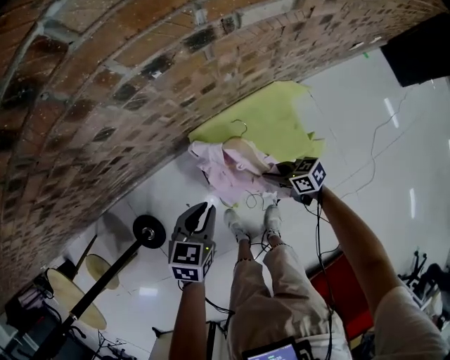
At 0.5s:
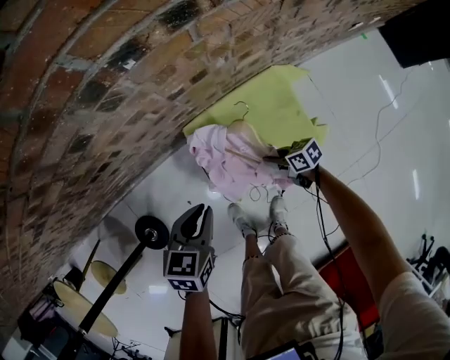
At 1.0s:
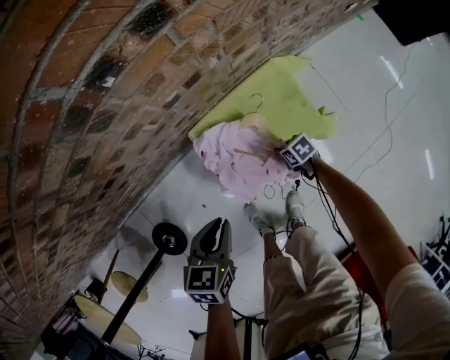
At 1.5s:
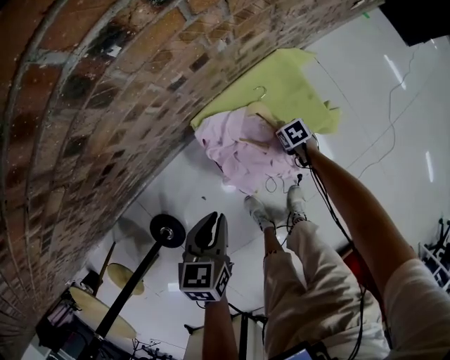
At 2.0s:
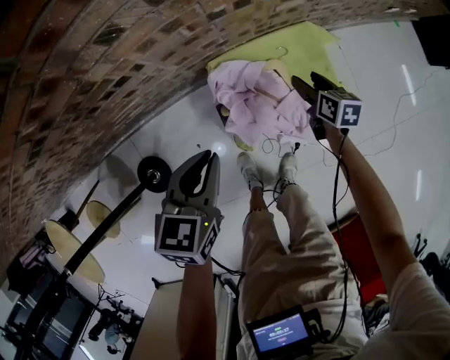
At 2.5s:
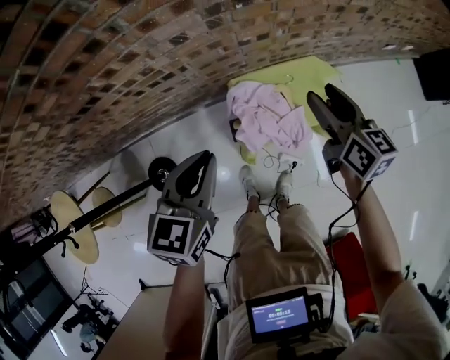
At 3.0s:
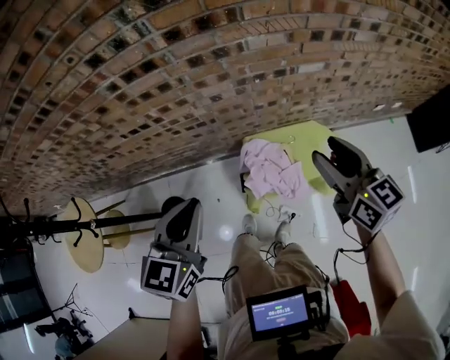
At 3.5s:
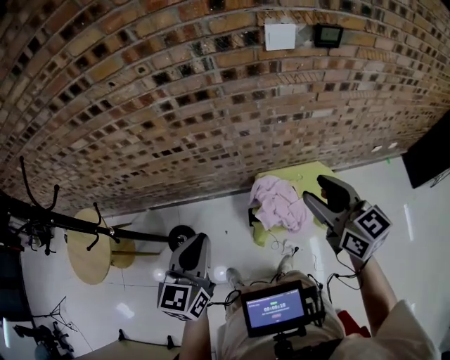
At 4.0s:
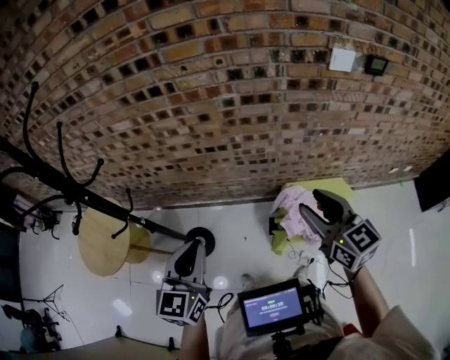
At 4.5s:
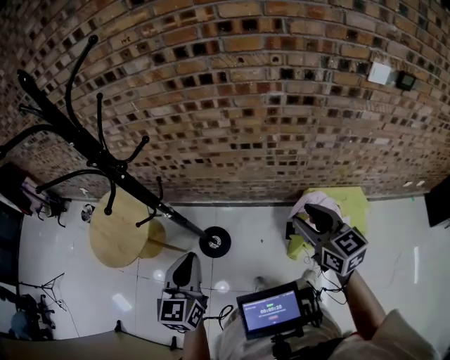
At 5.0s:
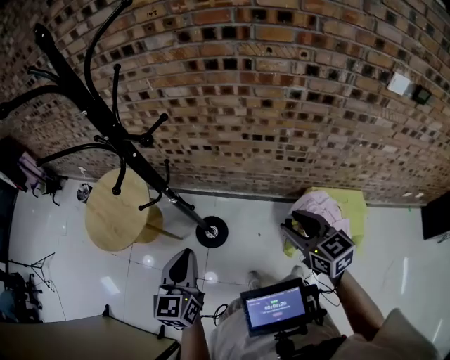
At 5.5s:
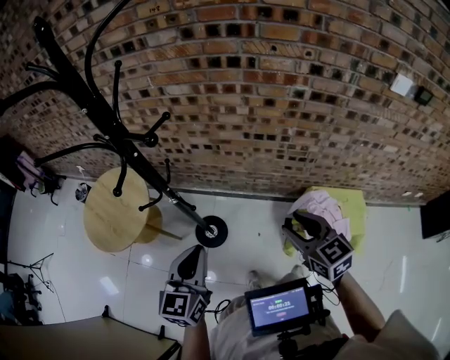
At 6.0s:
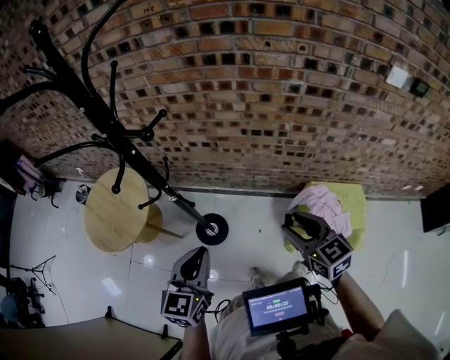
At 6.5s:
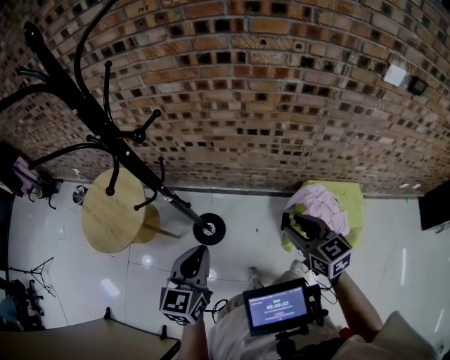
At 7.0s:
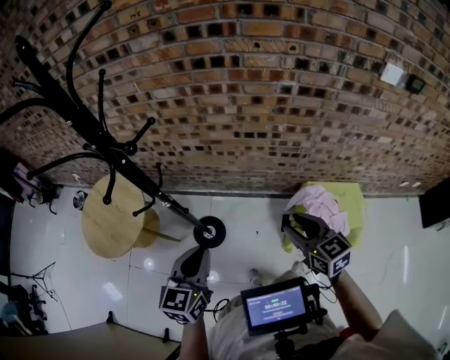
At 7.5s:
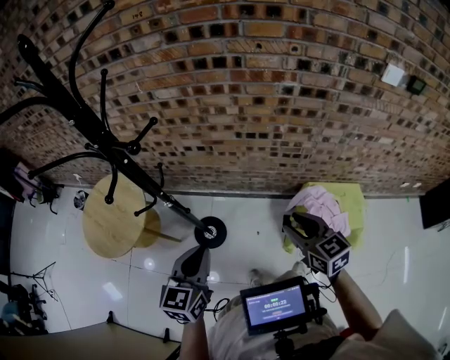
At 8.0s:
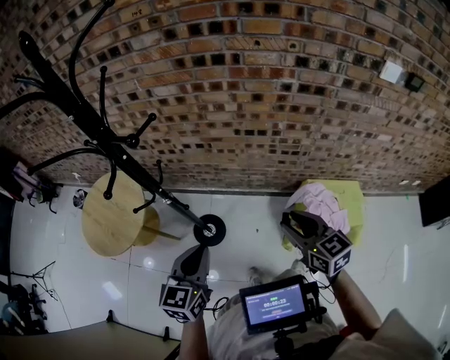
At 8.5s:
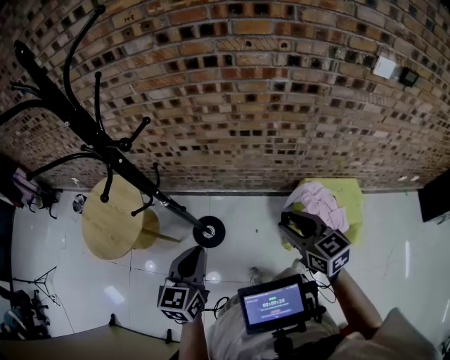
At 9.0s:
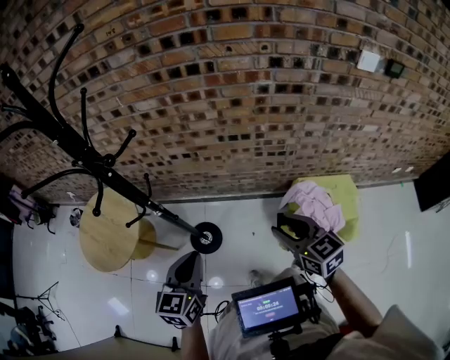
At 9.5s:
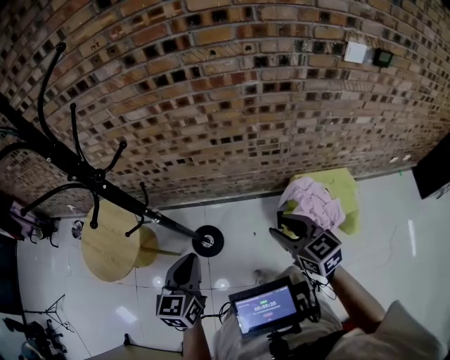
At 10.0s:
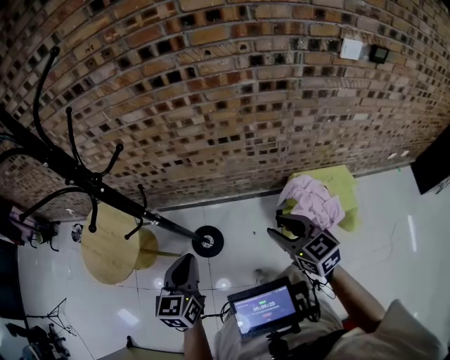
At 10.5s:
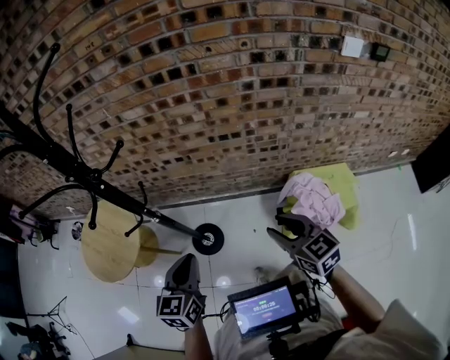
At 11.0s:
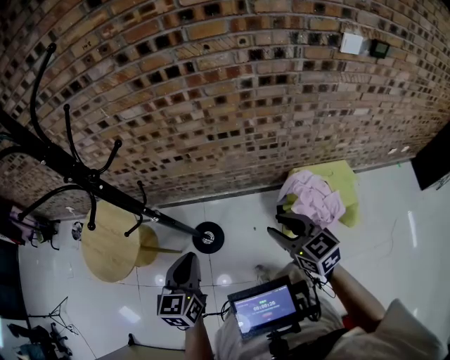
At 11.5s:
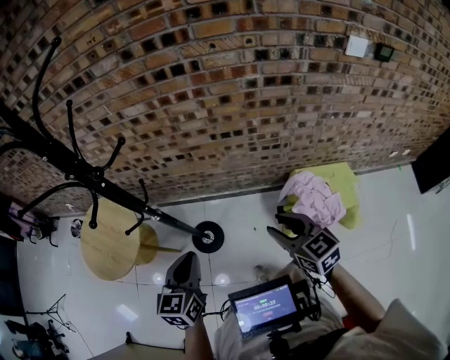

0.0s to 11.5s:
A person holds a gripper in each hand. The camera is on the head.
0.0s to 2.0s: The right gripper is displaced forward by some 5 cm, goes downward and returns, roughly 25 cm each way, changes its angle by approximately 40 degrees, and opens. Meanwhile the left gripper shifts about 5 cm to the left, and moves about 10 cm downward and comes back.
2.0s to 4.0s: Both grippers are carried roughly 60 cm. Both grippers travel together upward, roughly 70 cm. The right gripper rotates roughly 50 degrees; the left gripper swivels some 40 degrees.
4.0s to 6.0s: Both grippers travel together to the left, some 30 cm.
6.0s to 11.5s: The grippers move only a little.

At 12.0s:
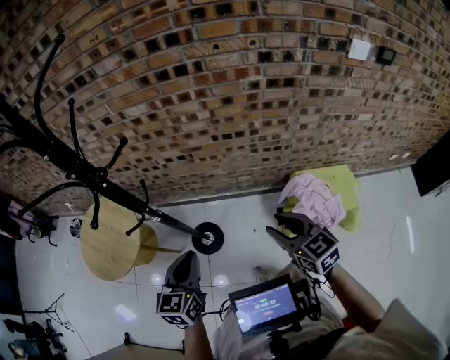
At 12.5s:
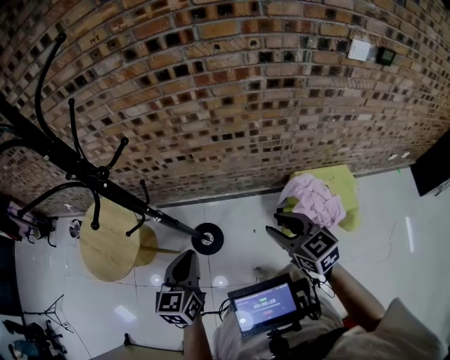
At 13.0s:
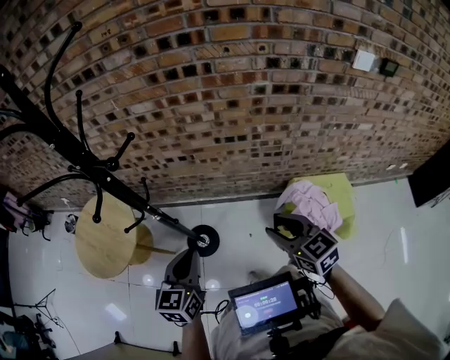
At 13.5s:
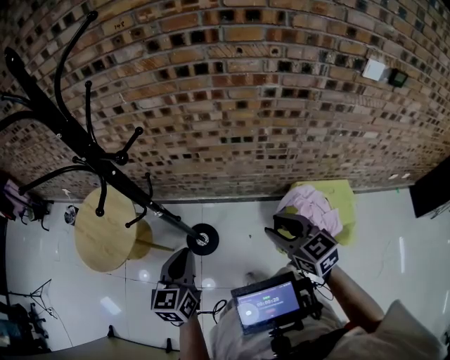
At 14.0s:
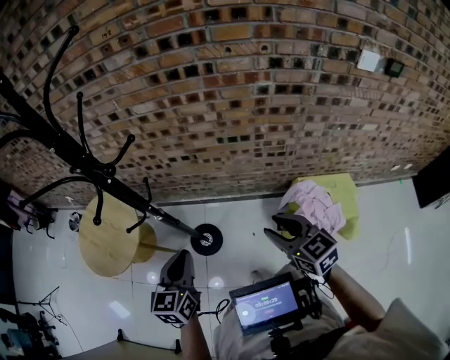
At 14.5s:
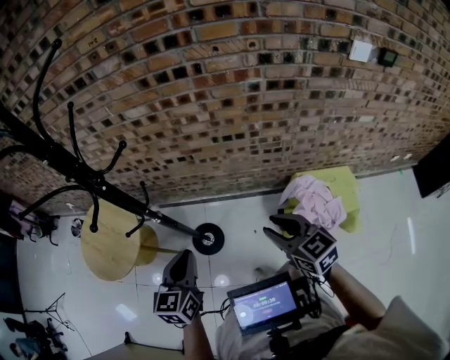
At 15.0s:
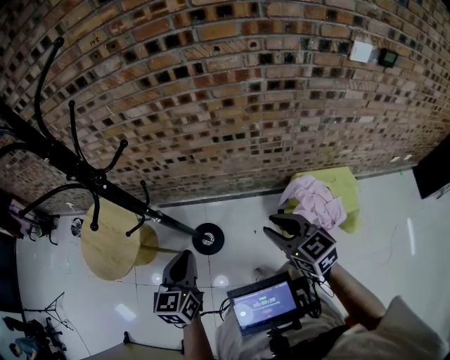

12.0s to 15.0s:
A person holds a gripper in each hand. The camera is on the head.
12.0s to 15.0s: The grippers make only small movements.

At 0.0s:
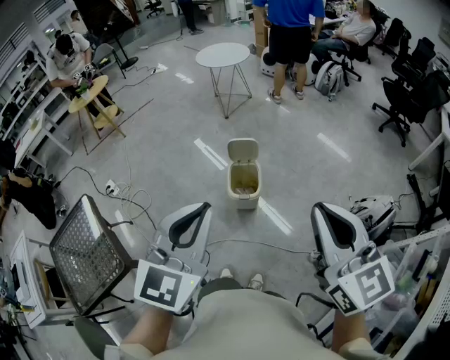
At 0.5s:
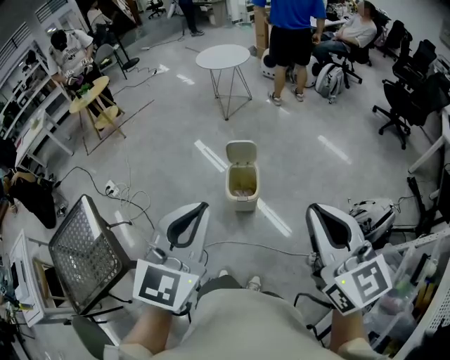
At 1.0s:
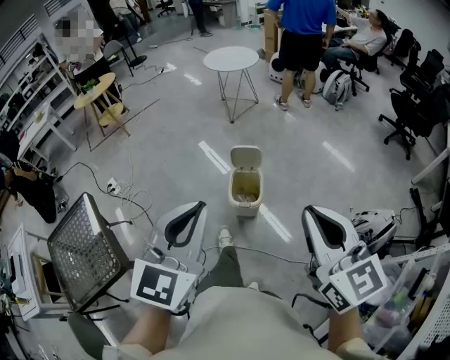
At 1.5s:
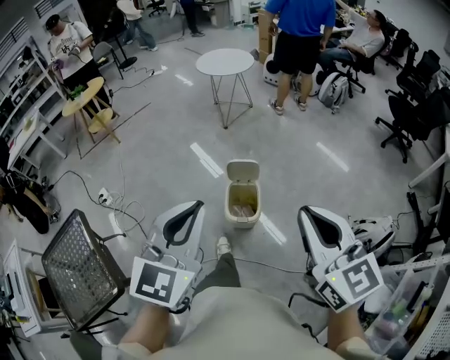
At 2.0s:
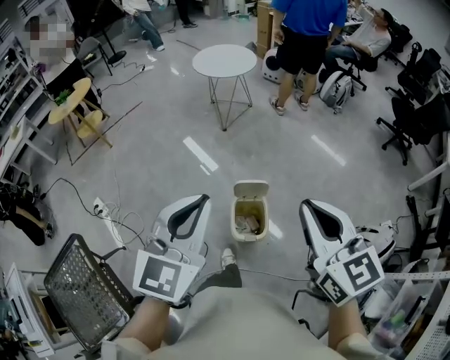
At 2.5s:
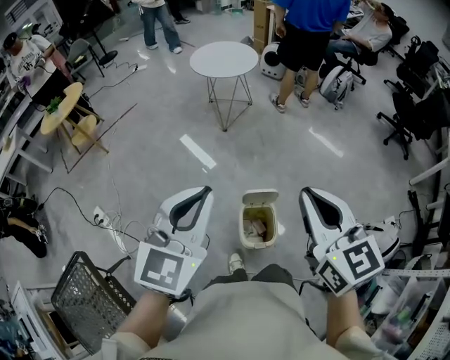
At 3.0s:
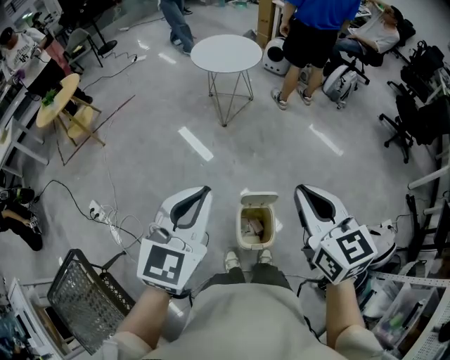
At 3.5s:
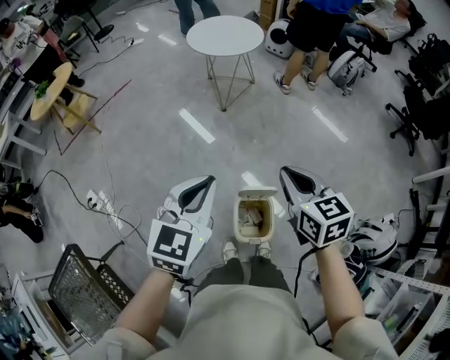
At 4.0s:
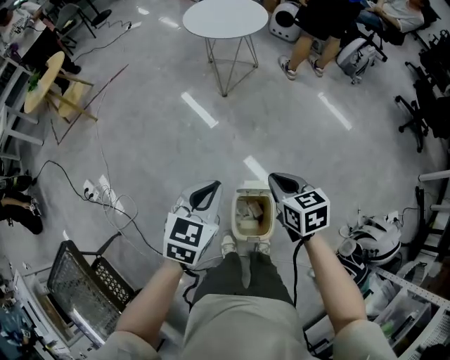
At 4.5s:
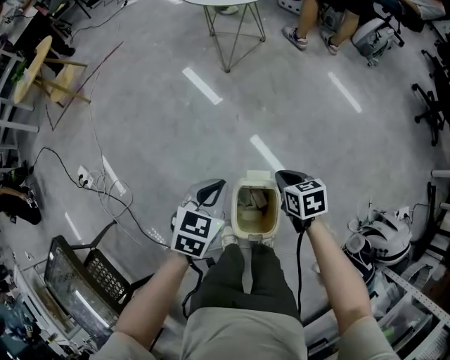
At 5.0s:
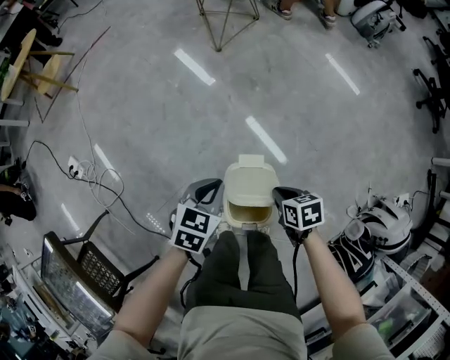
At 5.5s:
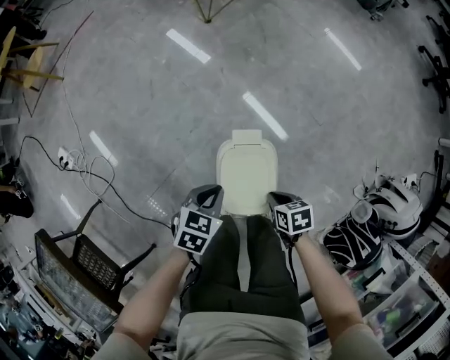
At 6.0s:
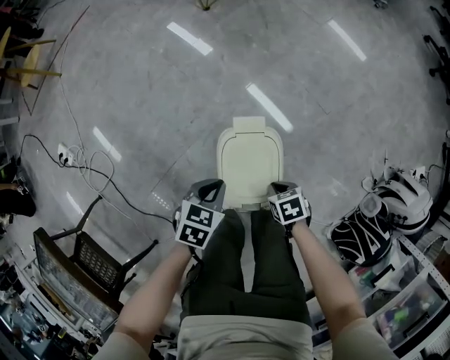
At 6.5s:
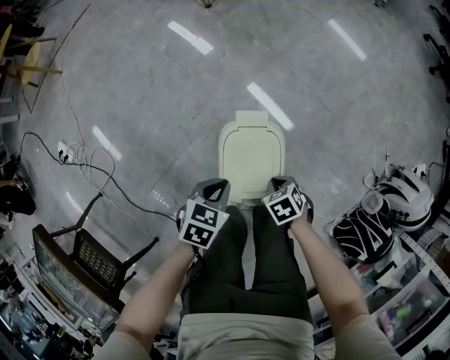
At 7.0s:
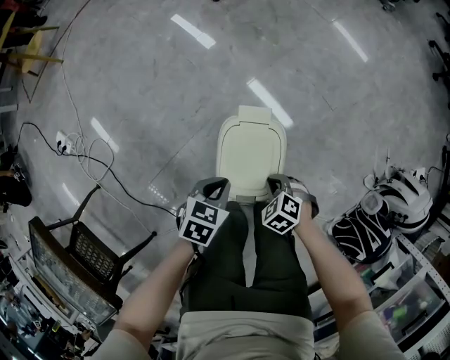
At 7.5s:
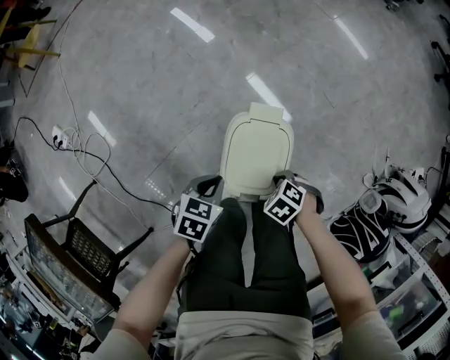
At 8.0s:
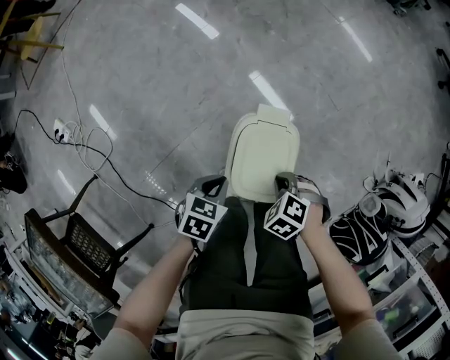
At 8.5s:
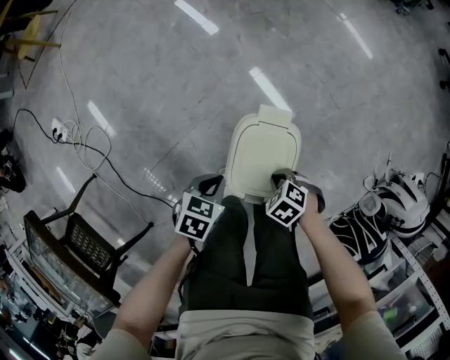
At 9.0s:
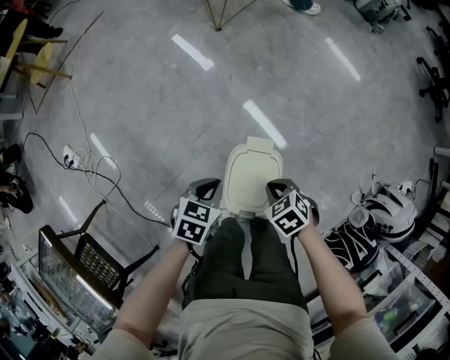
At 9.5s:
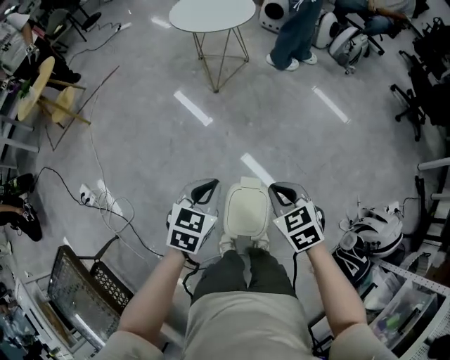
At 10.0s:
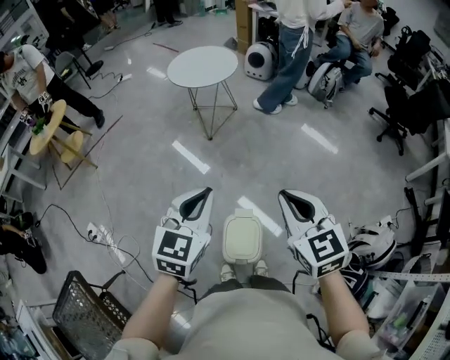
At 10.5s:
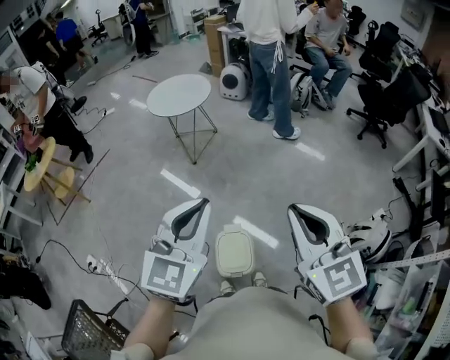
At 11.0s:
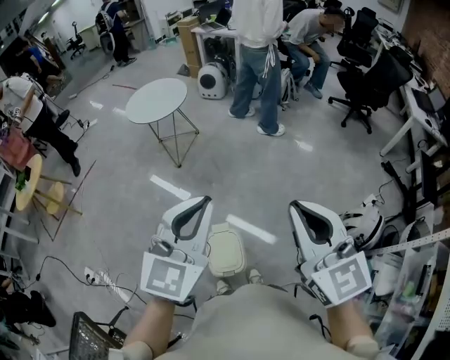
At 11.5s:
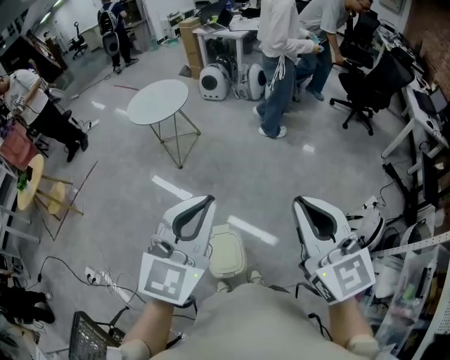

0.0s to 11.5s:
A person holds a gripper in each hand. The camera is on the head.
0.0s to 2.0s: The two grippers go about 35 cm forward.
2.0s to 4.0s: Both grippers move downward and forward, roughly 40 cm. The left gripper changes its angle by roughly 20 degrees. The right gripper changes its angle by some 30 degrees.
4.0s to 6.0s: The left gripper is displaced downward by about 40 cm, and rotates some 30 degrees. Meanwhile the right gripper moves downward and backward, roughly 50 cm, and rotates some 40 degrees.
6.0s to 7.5s: The right gripper twists about 40 degrees counterclockwise, seen from behind, while the left gripper moves about 5 cm.
7.5s to 9.5s: The left gripper is displaced upward by approximately 35 cm, and changes its angle by roughly 30 degrees; the right gripper goes up and down, roughly 40 cm each way, reversing 2 times, and points its fingers roughly 30 degrees further upward.
9.5s to 11.5s: The two grippers go approximately 40 cm upward and to the right. The right gripper angles its fingers upward, by approximately 40 degrees, while the left gripper angles its fingers upward, by roughly 30 degrees.

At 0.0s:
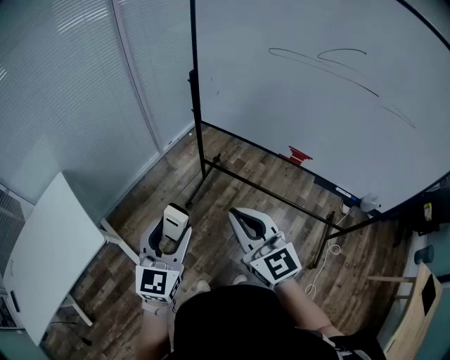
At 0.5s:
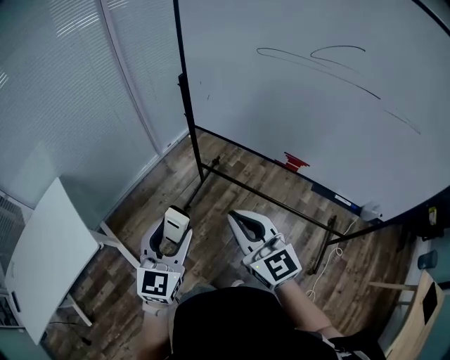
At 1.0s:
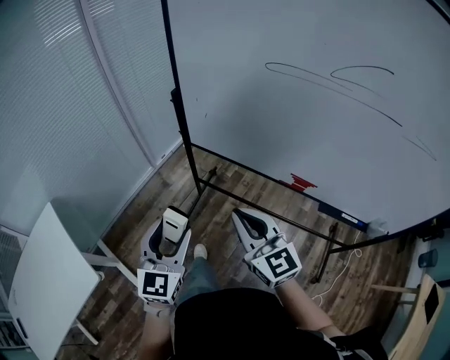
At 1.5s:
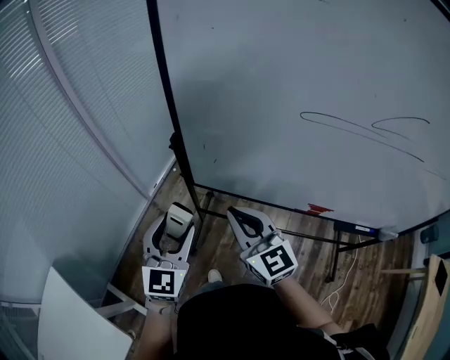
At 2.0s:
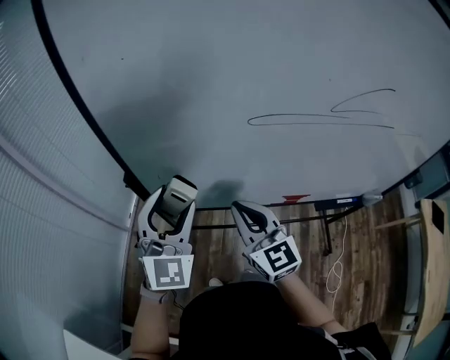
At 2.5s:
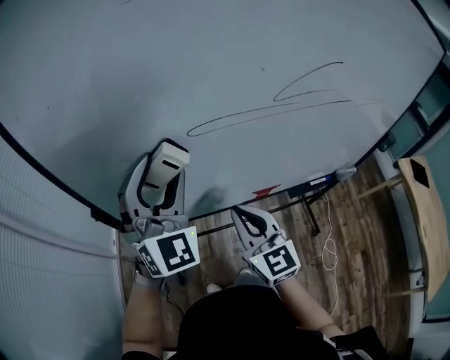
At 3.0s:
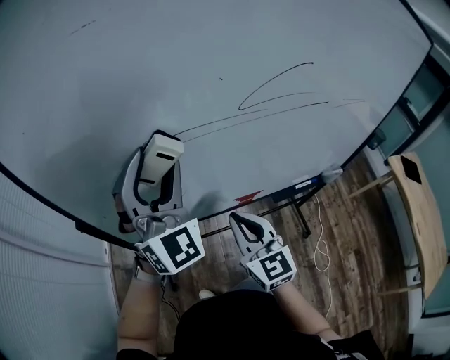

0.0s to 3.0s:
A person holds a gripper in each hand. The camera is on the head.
0.0s to 1.5s: Both grippers move forward, approximately 40 cm.
1.5s to 3.0s: The left gripper ends up approximately 35 cm from where it was, and turns by some 40 degrees. The right gripper ends up some 25 cm from where it was, and rotates roughly 40 degrees.
